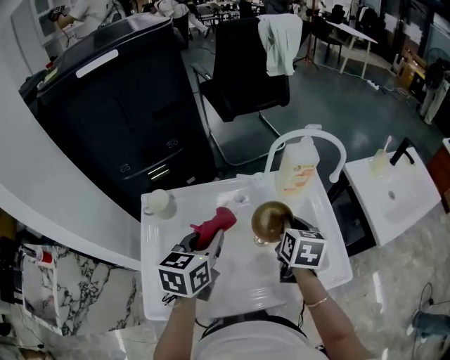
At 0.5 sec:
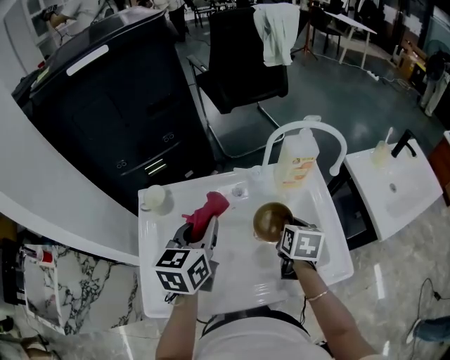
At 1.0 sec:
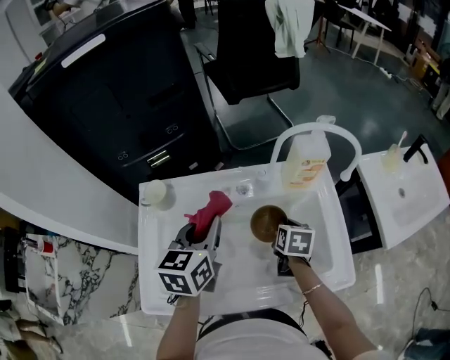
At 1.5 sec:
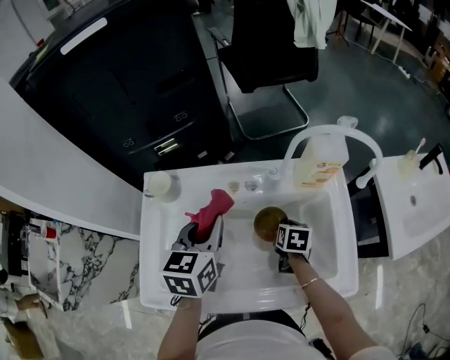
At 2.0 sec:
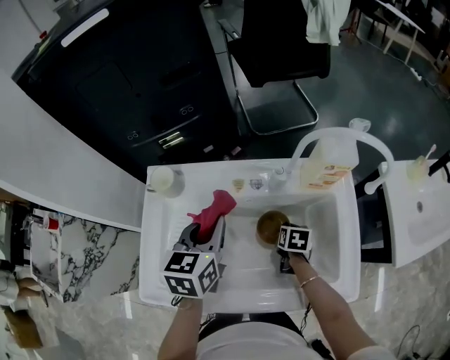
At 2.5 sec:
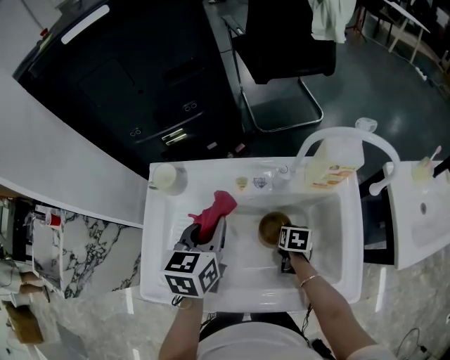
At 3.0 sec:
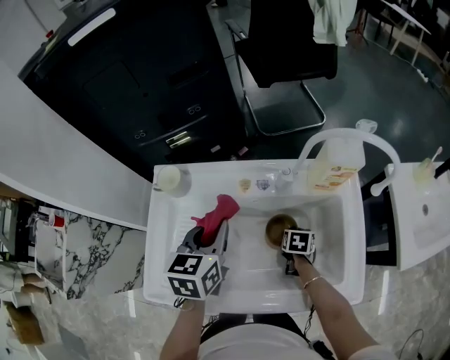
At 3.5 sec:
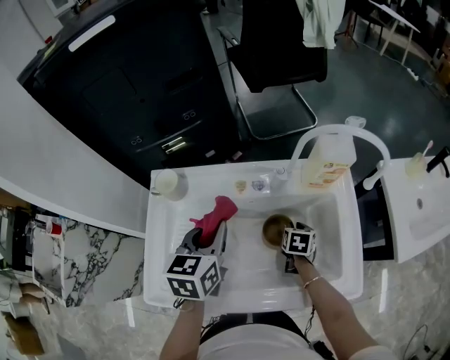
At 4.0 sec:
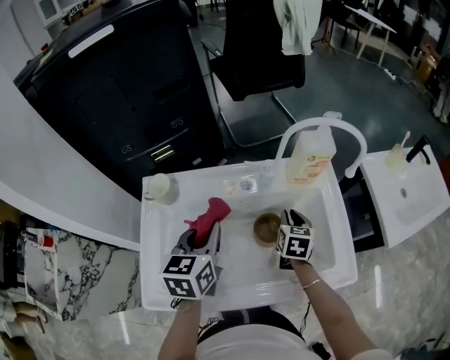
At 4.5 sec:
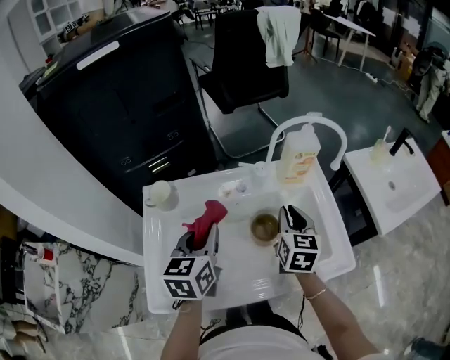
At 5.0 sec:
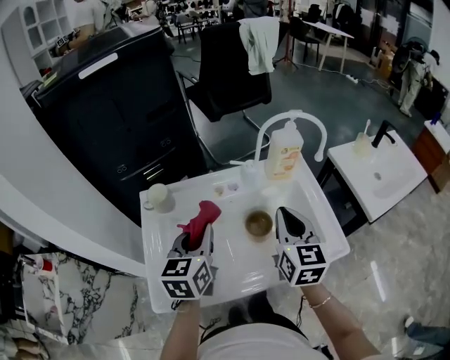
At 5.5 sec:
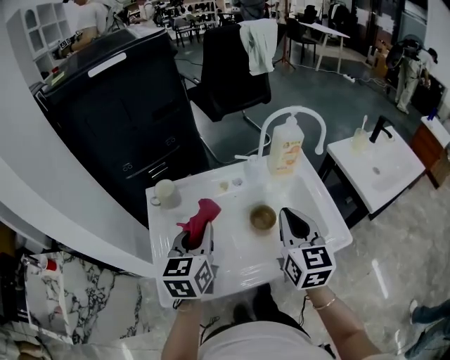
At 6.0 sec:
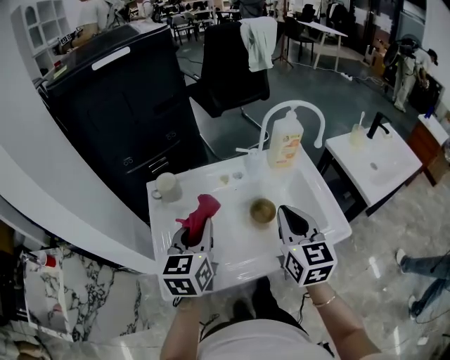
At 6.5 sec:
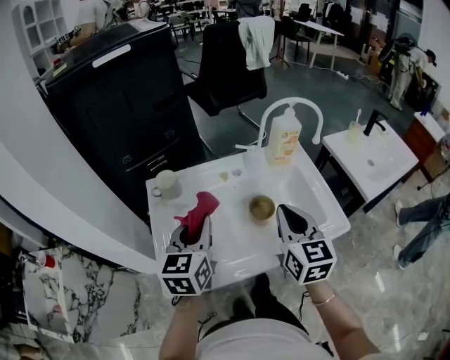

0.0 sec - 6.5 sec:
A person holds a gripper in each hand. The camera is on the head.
0.0 sec - 2.0 sec: The right gripper goes roughly 25 cm downward, and swivels roughly 30 degrees. The left gripper changes place by about 5 cm.
2.0 sec - 4.5 sec: The left gripper heads backward, covering approximately 5 cm. The right gripper moves upward, roughly 25 cm, and tilts its fingers roughly 40 degrees upward.
4.5 sec - 6.5 sec: The right gripper is displaced backward and upward by about 20 cm; the left gripper shifts approximately 10 cm backward.

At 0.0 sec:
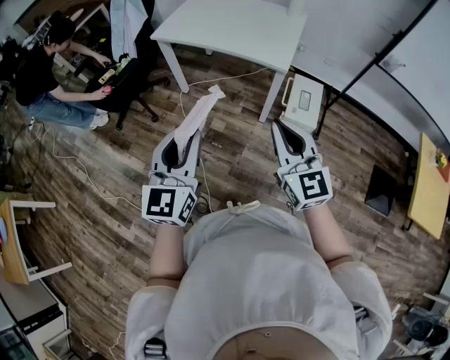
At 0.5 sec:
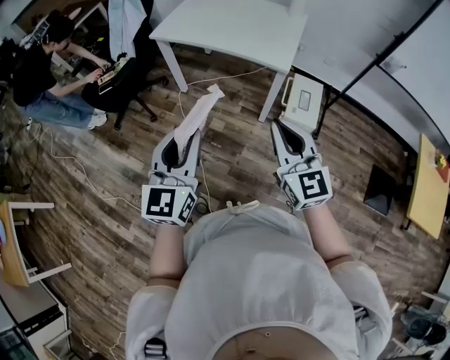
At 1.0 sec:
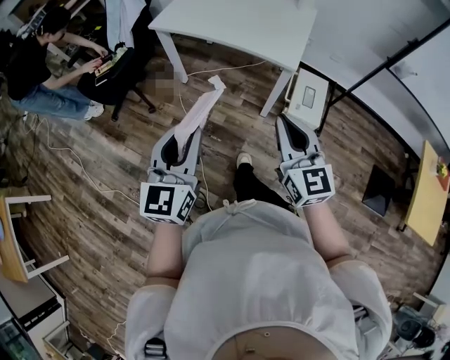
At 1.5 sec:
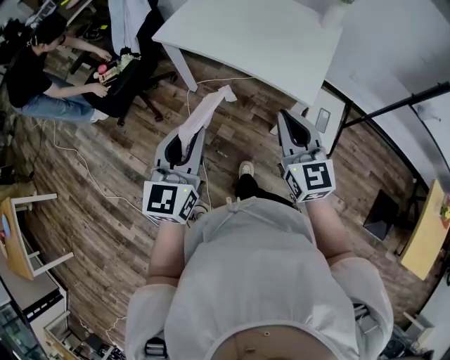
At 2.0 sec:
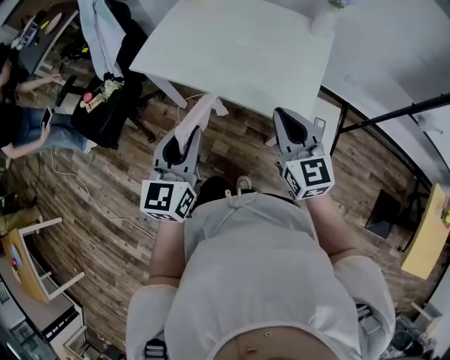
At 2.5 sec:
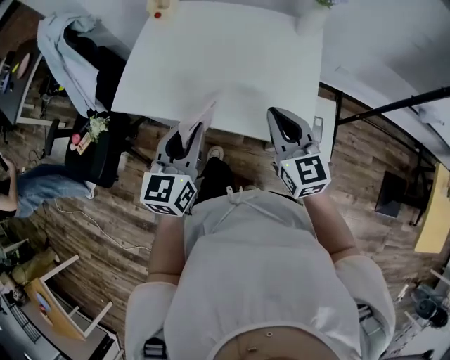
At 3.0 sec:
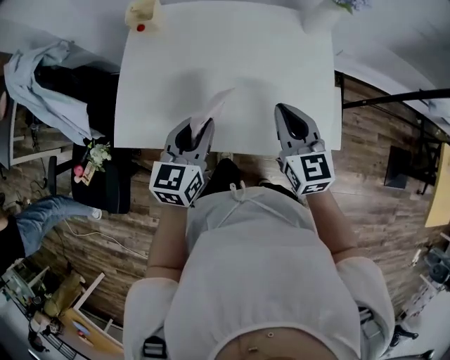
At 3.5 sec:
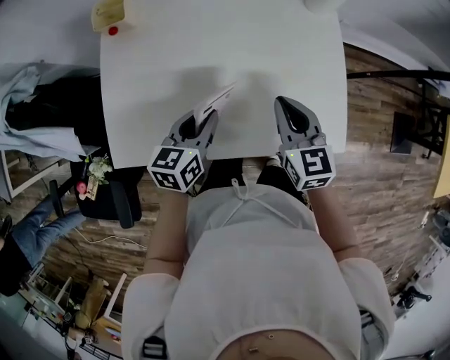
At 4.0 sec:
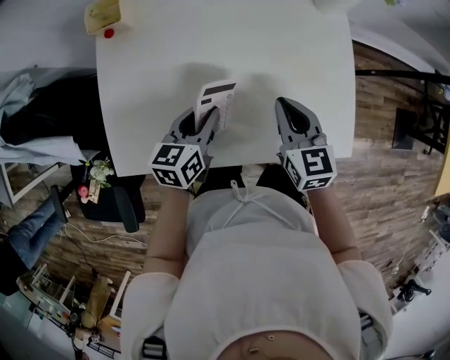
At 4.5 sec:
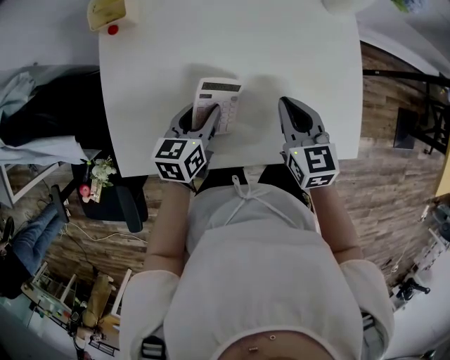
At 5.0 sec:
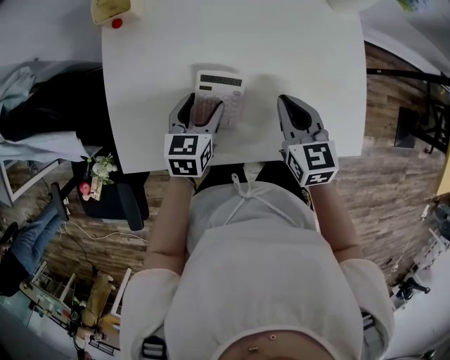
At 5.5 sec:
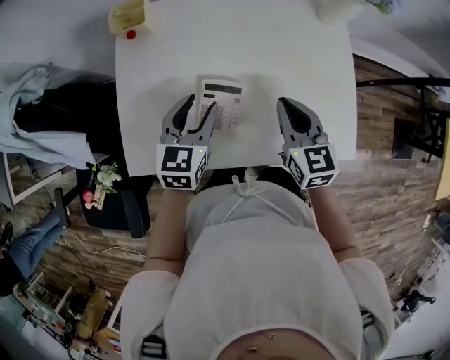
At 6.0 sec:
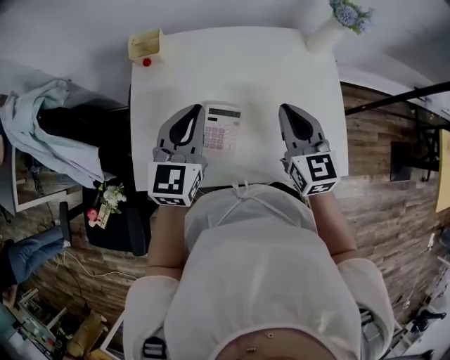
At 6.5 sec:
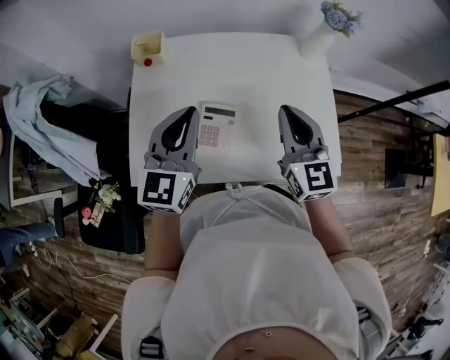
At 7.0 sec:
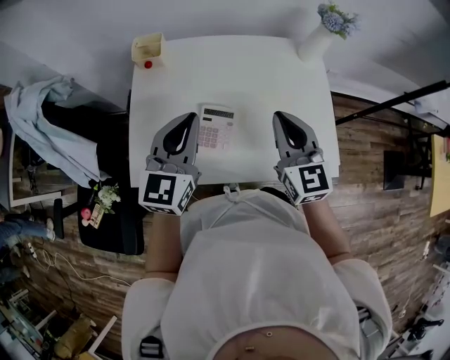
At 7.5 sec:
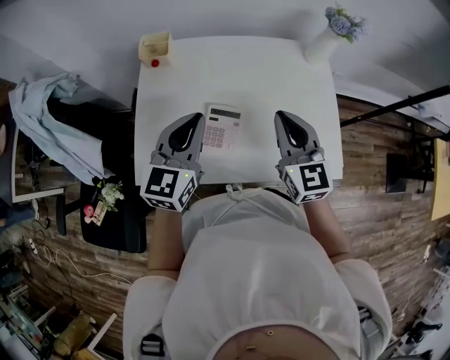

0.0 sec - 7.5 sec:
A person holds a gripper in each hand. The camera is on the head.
0.0 sec - 2.0 sec: Both grippers move forward, roughly 40 cm.
2.0 sec - 4.0 sec: The left gripper changes place by some 40 cm, and turns by approximately 50 degrees. Meanwhile the right gripper moves approximately 35 cm, and rotates roughly 40 degrees.
4.0 sec - 5.5 sec: The left gripper heads upward, covering approximately 5 cm, and changes its angle by roughly 20 degrees.
5.5 sec - 7.5 sec: The two grippers go approximately 15 cm upward. The left gripper closes.

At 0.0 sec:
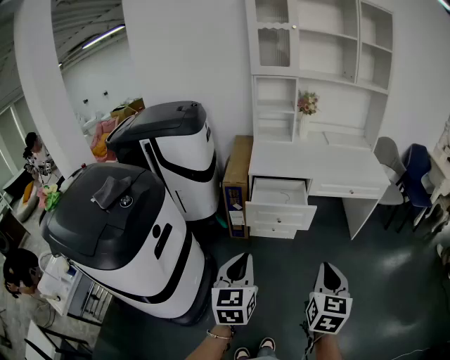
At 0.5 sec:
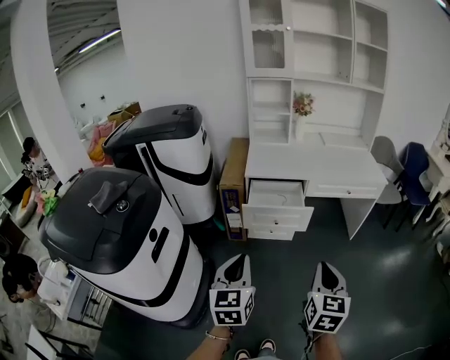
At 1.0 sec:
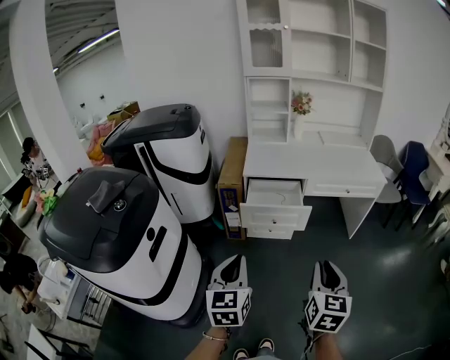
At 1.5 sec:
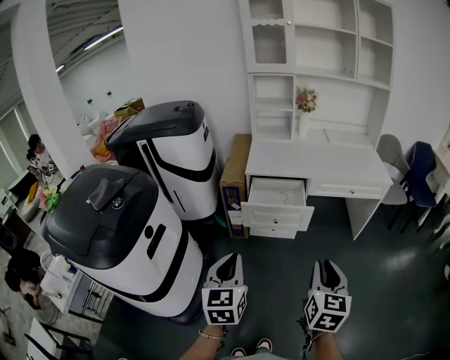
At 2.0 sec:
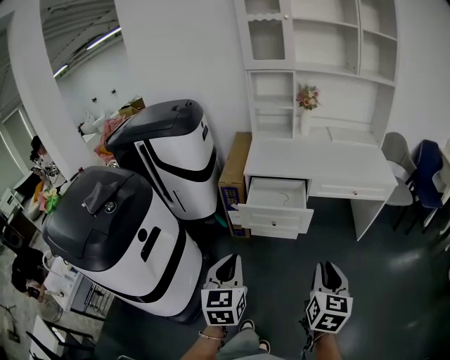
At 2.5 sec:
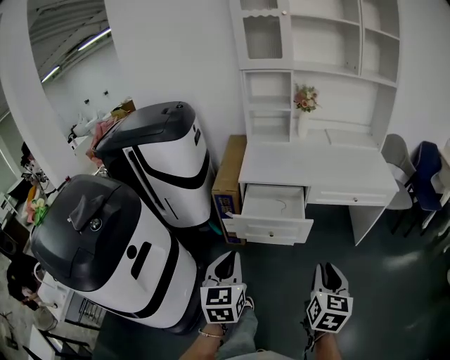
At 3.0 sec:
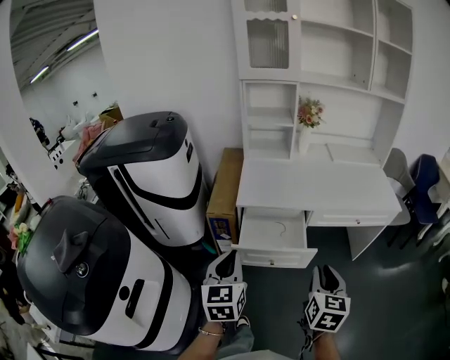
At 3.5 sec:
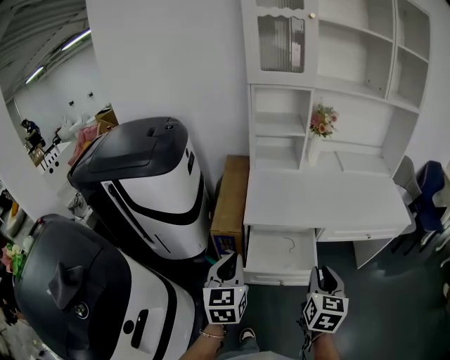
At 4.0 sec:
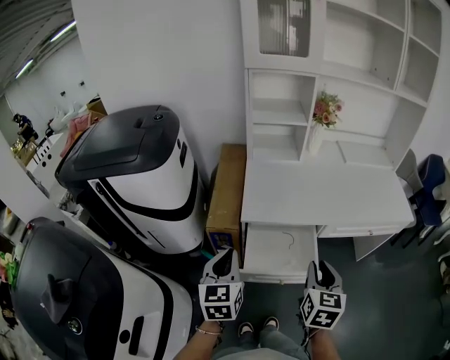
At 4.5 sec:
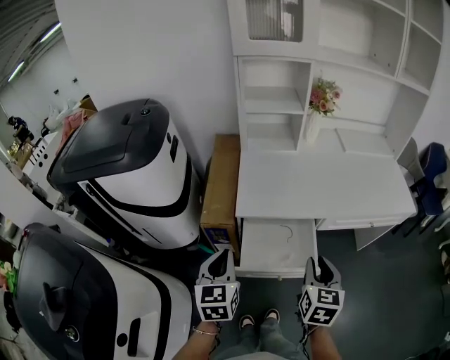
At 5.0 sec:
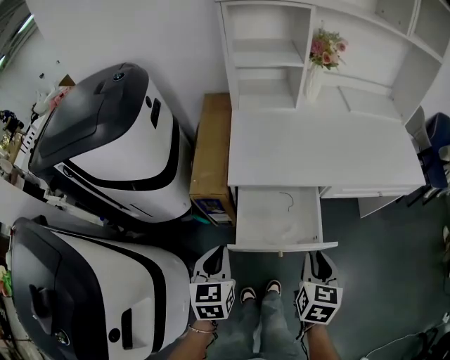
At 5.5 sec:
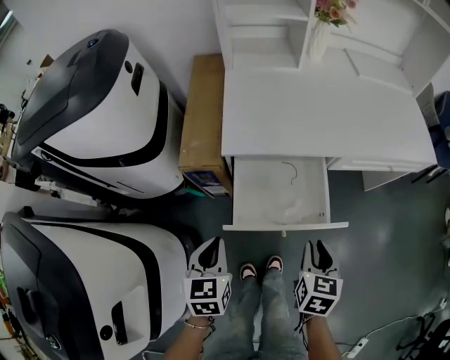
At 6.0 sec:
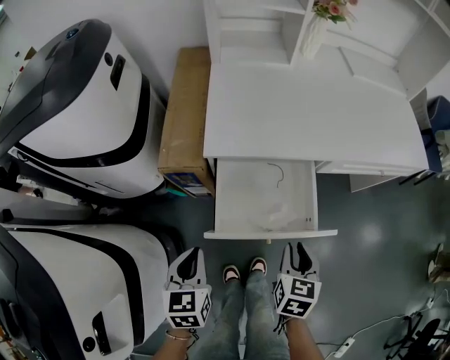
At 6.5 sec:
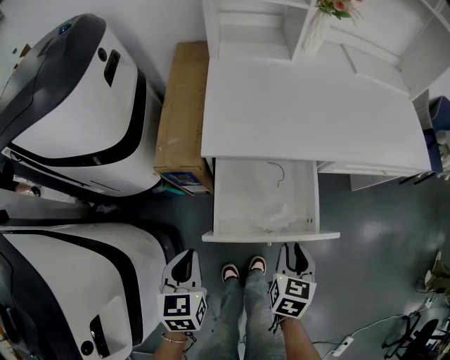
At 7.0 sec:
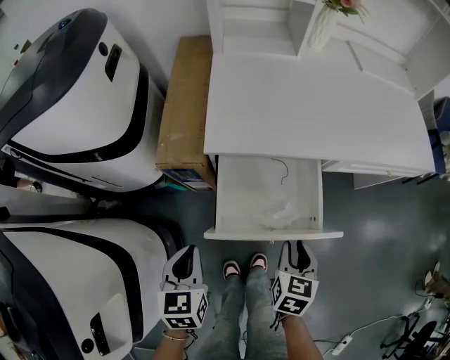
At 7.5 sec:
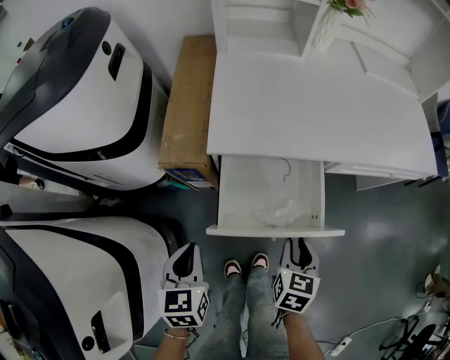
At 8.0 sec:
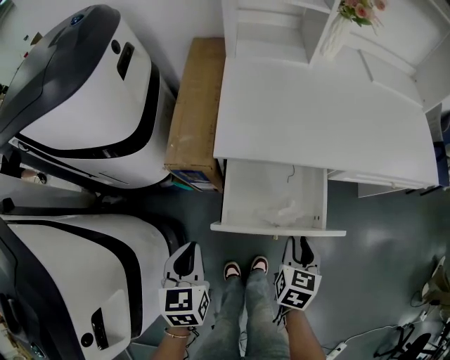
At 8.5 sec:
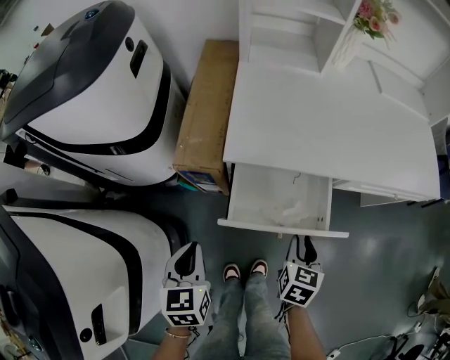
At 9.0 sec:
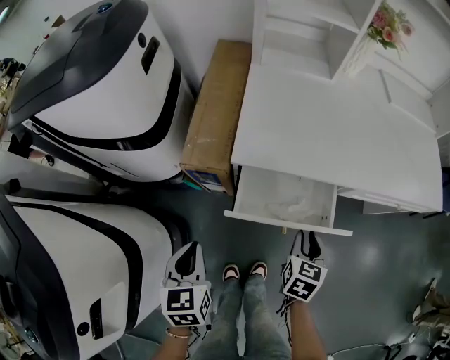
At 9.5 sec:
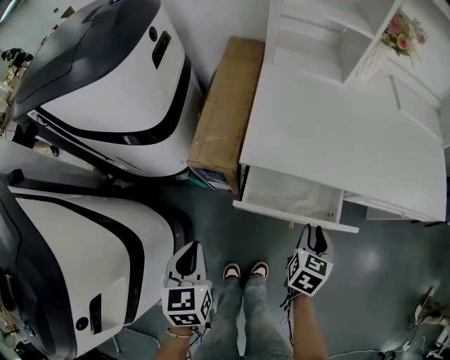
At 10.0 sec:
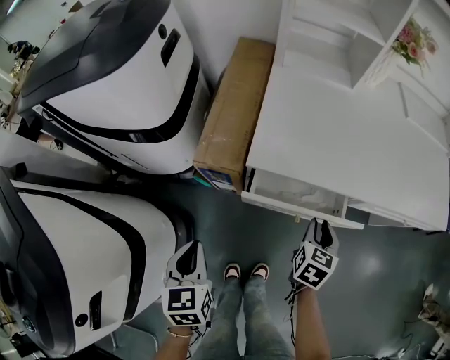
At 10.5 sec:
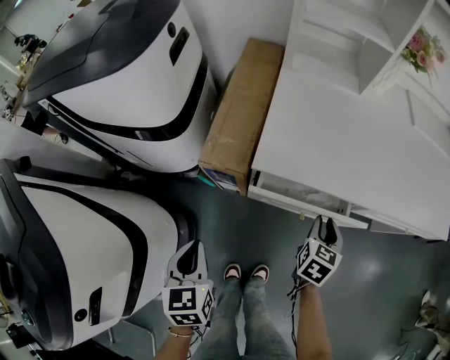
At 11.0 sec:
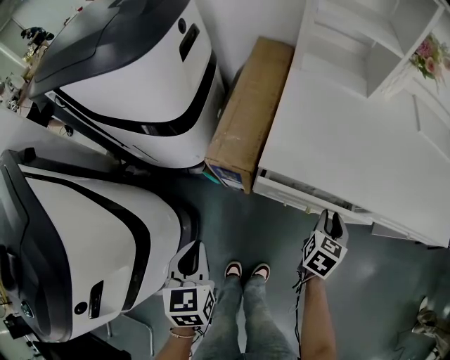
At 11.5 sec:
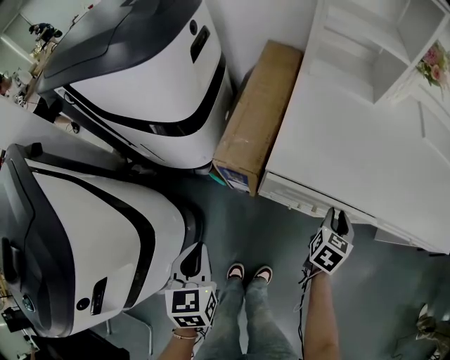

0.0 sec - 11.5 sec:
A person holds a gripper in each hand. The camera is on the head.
0.0 sec - 2.0 sec: The left gripper changes place by about 5 cm; the right gripper shifts about 10 cm forward and to the right, and opens its fingers.
2.0 sec - 4.0 sec: The two grippers go roughly 35 cm forward.
4.0 sec - 6.0 sec: The two grippers go roughly 20 cm downward. The left gripper changes its angle by some 20 degrees.
6.0 sec - 7.5 sec: There are only small adjustments of the grippers.
7.5 sec - 9.5 sec: The right gripper shifts some 10 cm forward.
9.5 sec - 11.5 sec: The right gripper heads forward, covering some 10 cm.

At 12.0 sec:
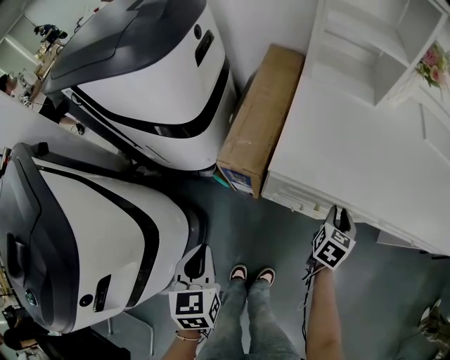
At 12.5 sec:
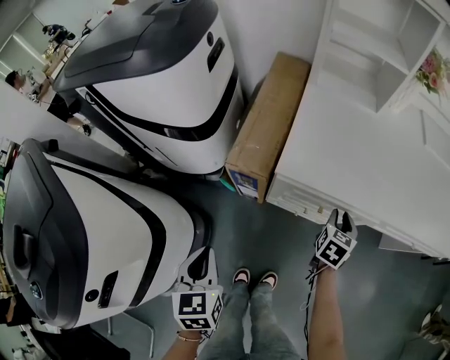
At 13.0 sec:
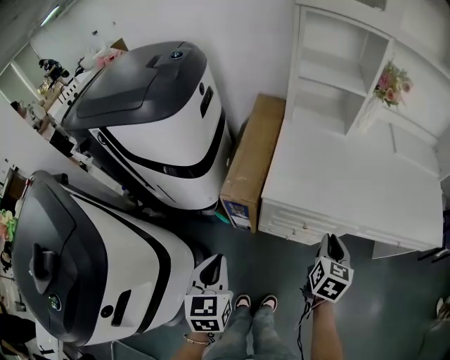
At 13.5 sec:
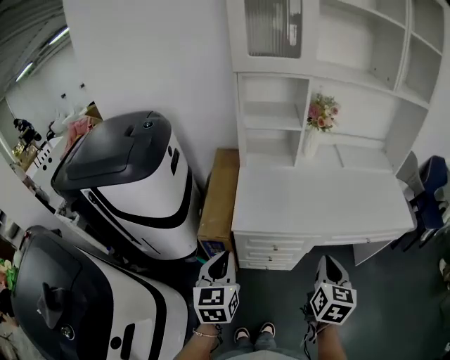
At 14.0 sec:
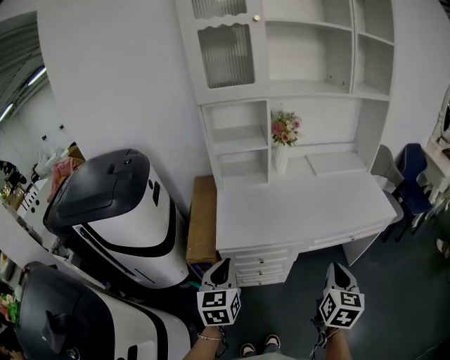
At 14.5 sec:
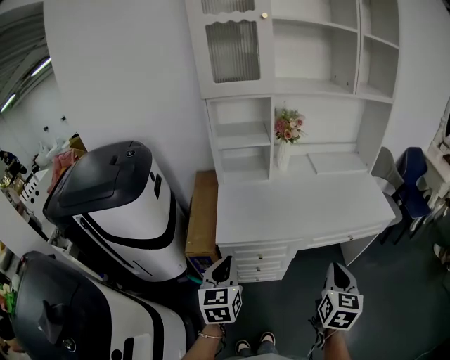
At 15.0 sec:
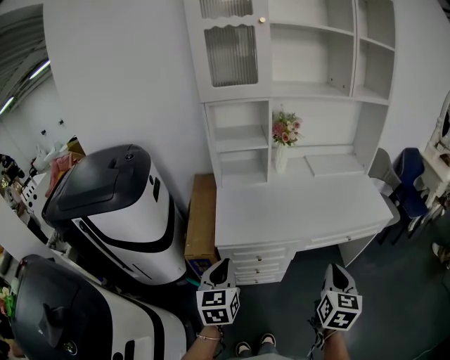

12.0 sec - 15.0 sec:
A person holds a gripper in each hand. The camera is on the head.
12.0 sec - 13.5 sec: The left gripper heads upward and to the right, covering approximately 20 cm, and swivels some 30 degrees, while the right gripper shifts about 30 cm upward and backward, turns by some 20 degrees, and closes.
13.5 sec - 15.0 sec: The left gripper shifts approximately 5 cm to the right. The right gripper heads to the right and backward, covering roughly 10 cm.
